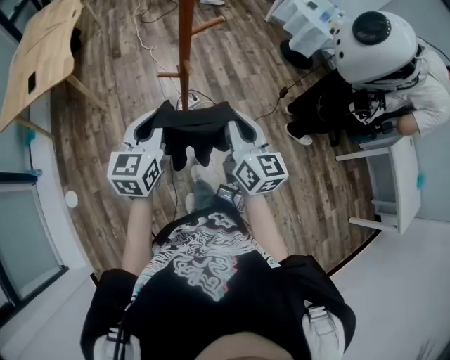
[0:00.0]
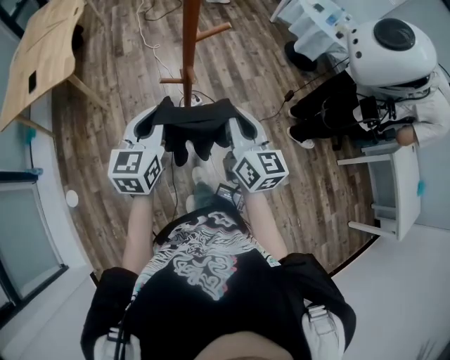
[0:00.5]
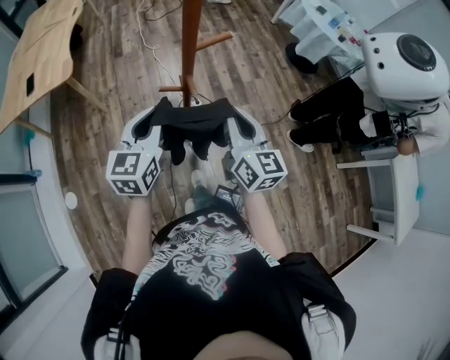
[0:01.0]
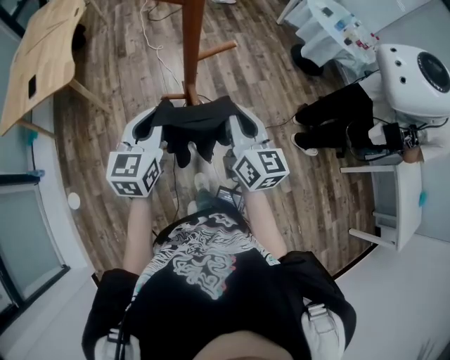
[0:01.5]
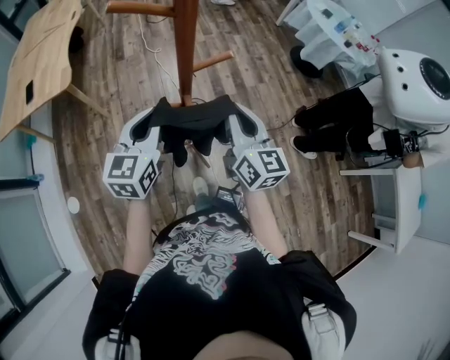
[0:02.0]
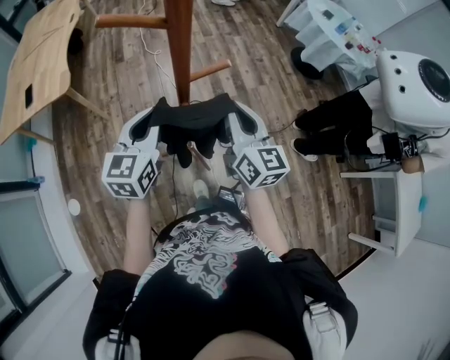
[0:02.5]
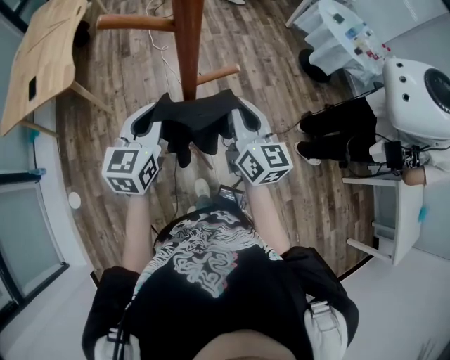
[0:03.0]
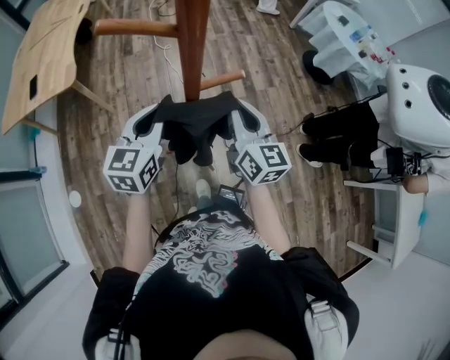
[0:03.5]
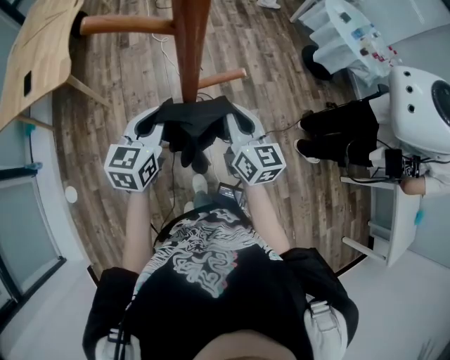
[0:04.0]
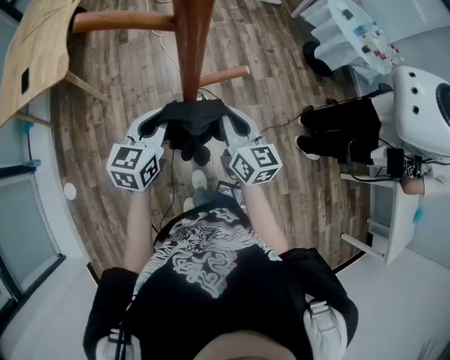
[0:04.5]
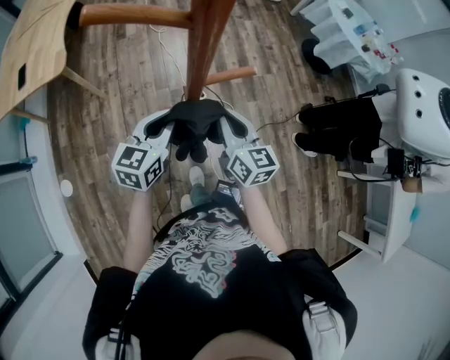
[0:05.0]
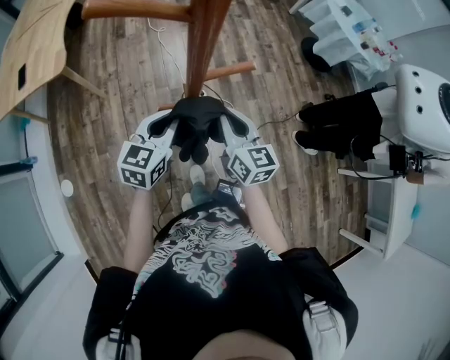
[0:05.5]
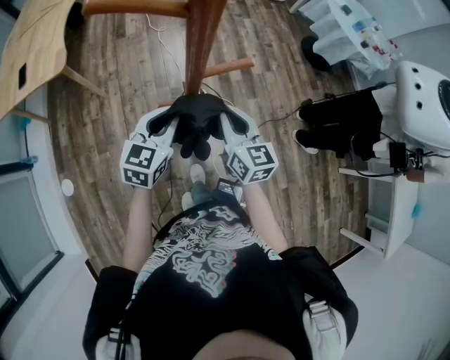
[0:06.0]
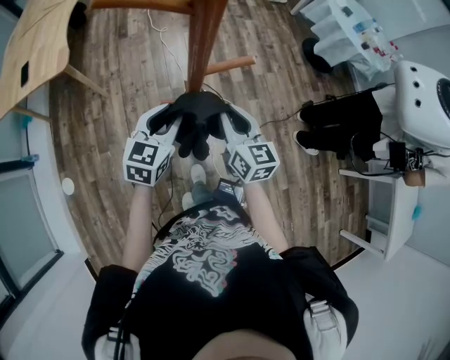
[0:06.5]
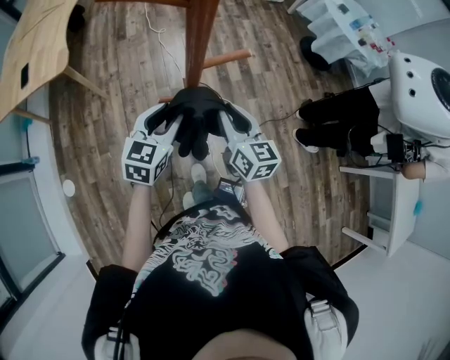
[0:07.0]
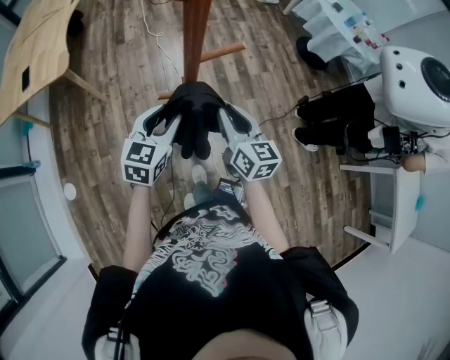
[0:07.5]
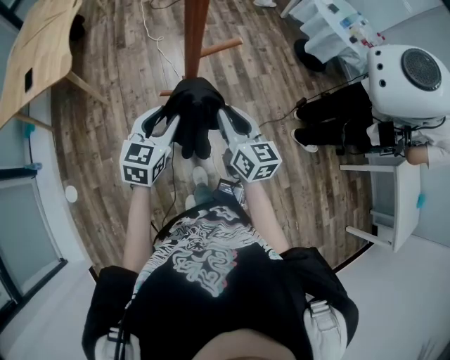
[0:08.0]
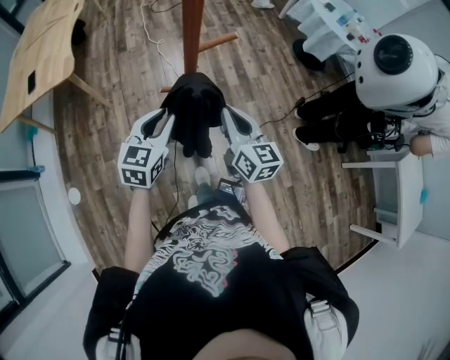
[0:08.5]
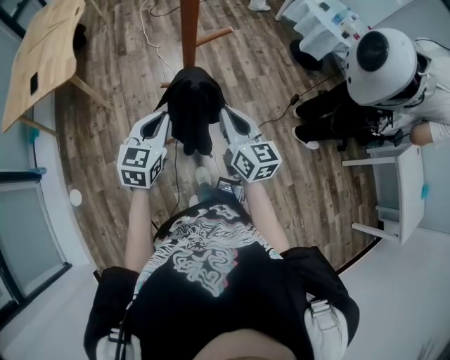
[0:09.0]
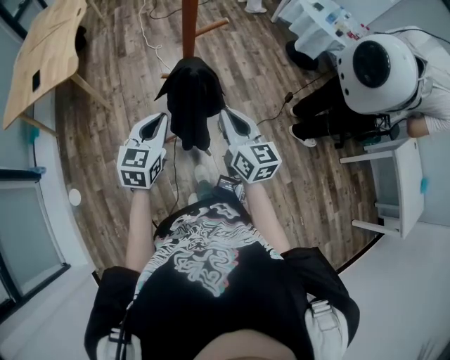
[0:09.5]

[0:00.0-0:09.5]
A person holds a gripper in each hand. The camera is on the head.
0:00.0 to 0:02.0: Both grippers travel together forward, some 15 cm.
0:02.0 to 0:04.0: Both grippers travel together forward and downward, about 10 cm.
0:04.0 to 0:05.5: The left gripper ends up some 5 cm from where it was, while the right gripper moves roughly 5 cm.
0:05.5 to 0:07.5: The left gripper opens.
0:07.5 to 0:09.5: Both grippers travel together backward, roughly 15 cm. The left gripper closes.

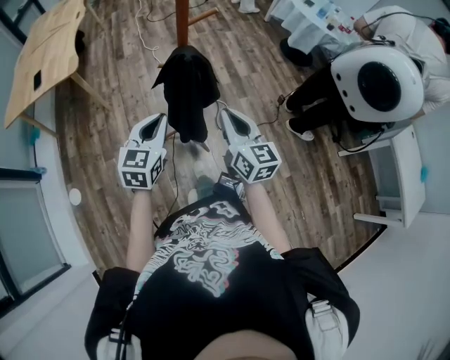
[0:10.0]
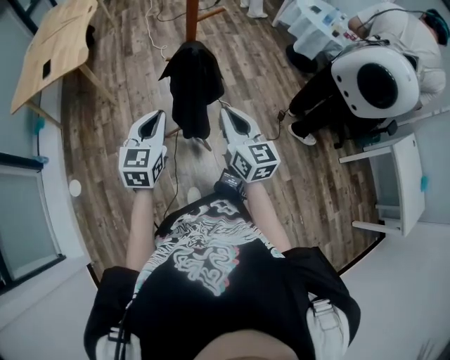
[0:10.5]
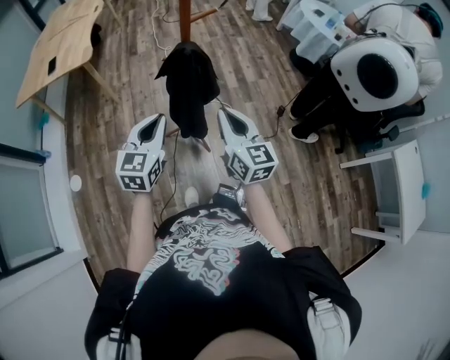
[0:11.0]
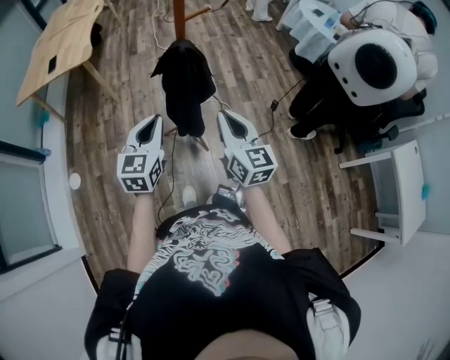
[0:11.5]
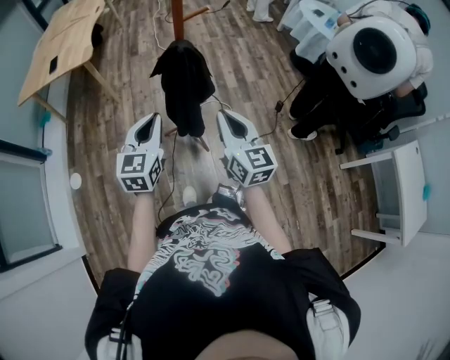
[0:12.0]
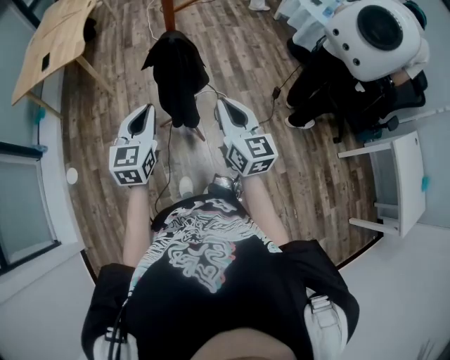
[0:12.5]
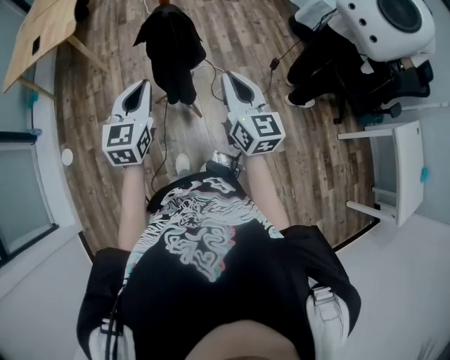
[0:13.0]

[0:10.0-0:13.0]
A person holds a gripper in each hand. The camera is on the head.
0:10.0 to 0:11.5: Both grippers travel together backward, about 5 cm.
0:11.5 to 0:13.0: The right gripper moves some 5 cm.

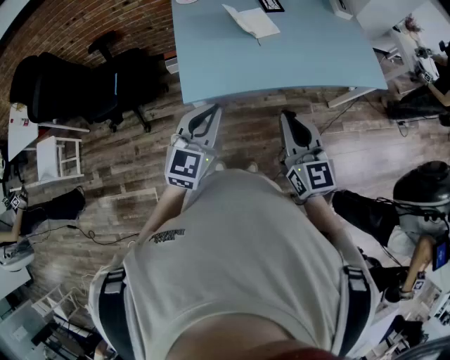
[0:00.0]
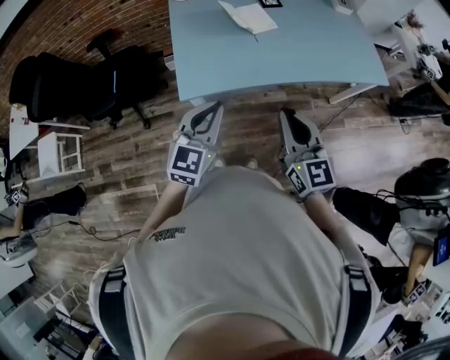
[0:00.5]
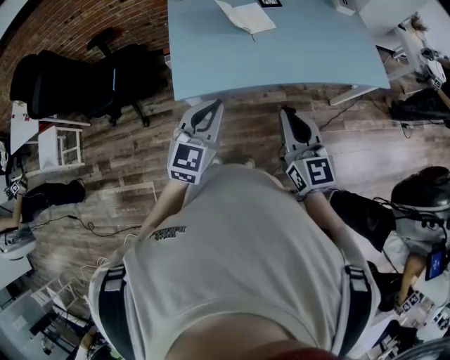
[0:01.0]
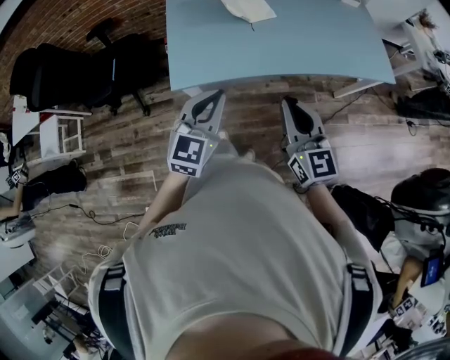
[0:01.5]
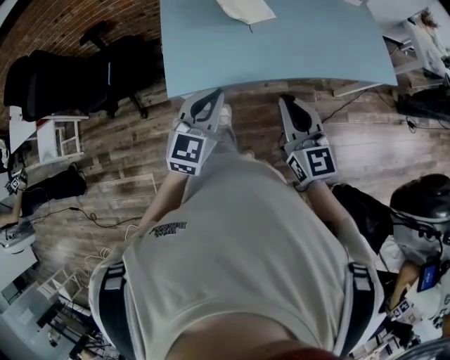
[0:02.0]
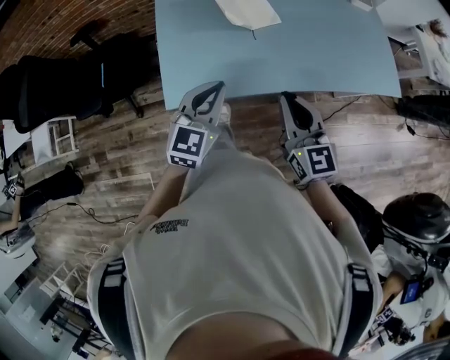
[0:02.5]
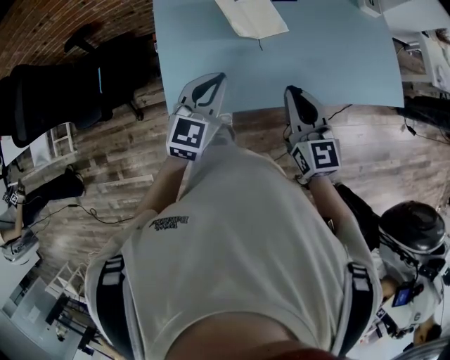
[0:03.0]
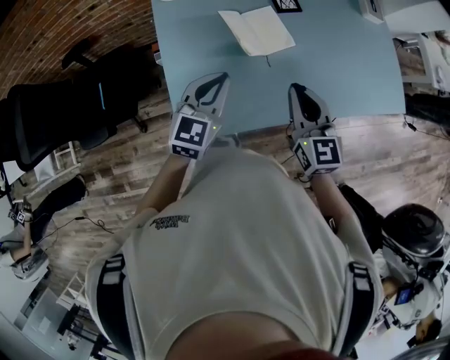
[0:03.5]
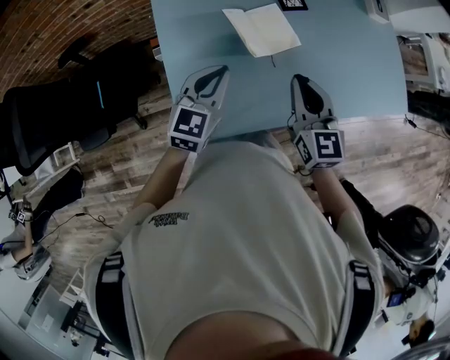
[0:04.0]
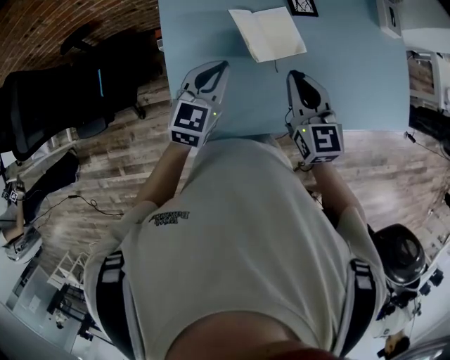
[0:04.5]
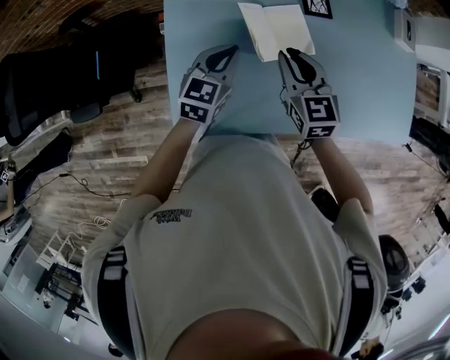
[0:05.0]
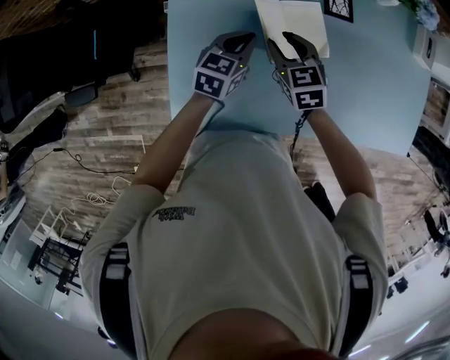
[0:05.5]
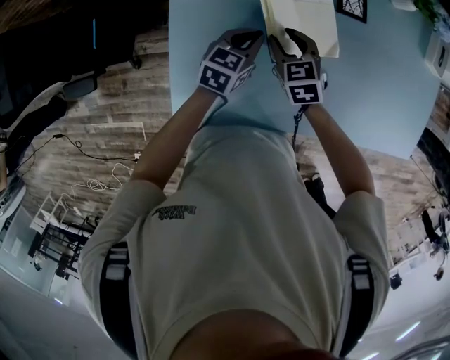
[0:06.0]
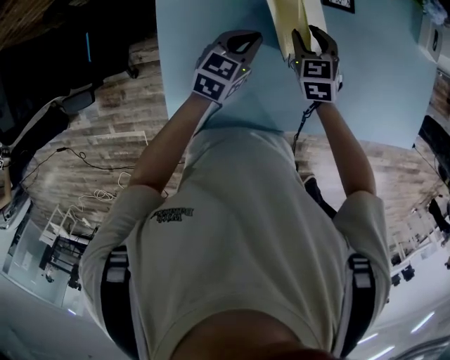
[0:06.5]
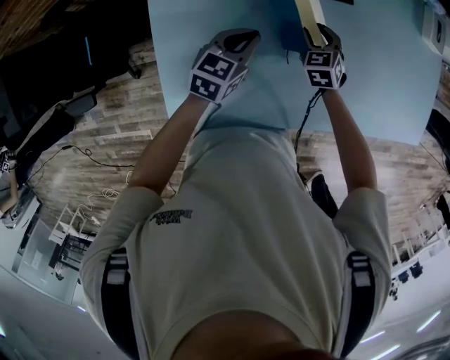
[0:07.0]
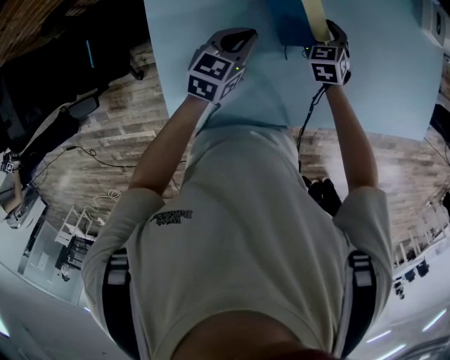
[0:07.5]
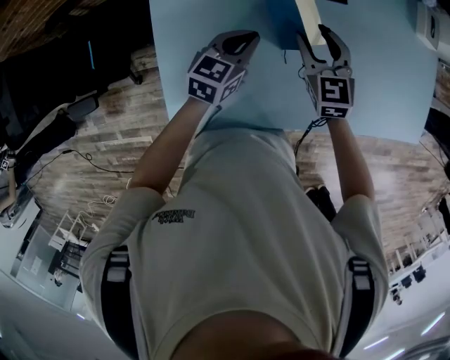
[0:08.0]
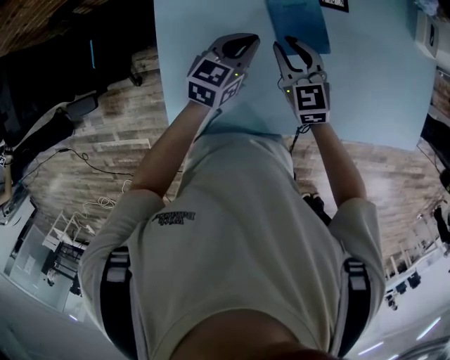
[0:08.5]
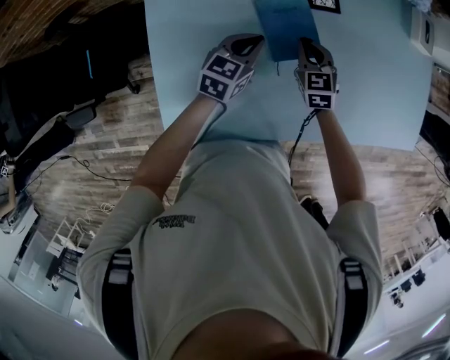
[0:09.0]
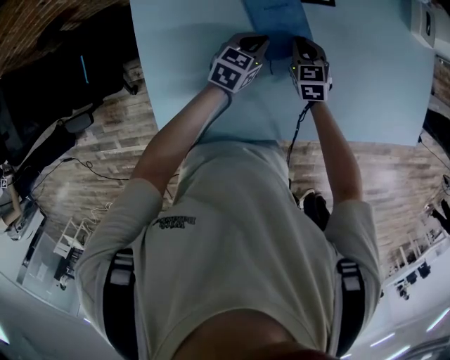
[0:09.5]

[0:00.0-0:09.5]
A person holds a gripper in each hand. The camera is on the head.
0:00.0 to 0:02.0: The left gripper travels to the right and forward by roughly 10 cm, while the right gripper goes roughly 10 cm forward and to the right.
0:02.0 to 0:04.0: Both grippers travel together forward, about 30 cm.
0:04.0 to 0:05.5: The right gripper is displaced downward, forward and to the left by roughly 25 cm, rotates approximately 30 degrees, and opens up; the left gripper heads downward and forward, covering about 20 cm, and changes its angle by about 20 degrees.
0:05.5 to 0:07.5: The right gripper goes approximately 20 cm to the right, downward and forward, turns by approximately 20 degrees, and opens its fingers.
0:07.5 to 0:09.5: The right gripper moves some 15 cm upward and comes back, and closes up. The left gripper moves downward and to the right, some 10 cm.

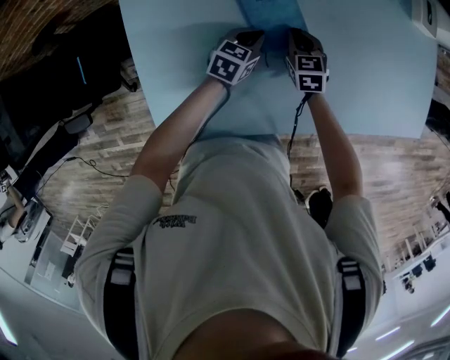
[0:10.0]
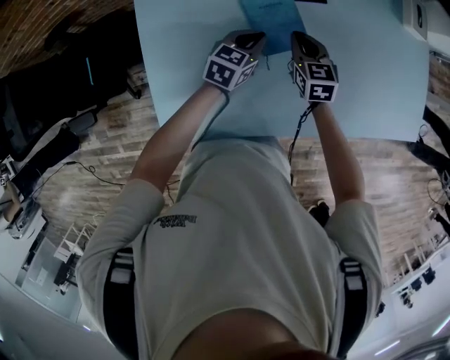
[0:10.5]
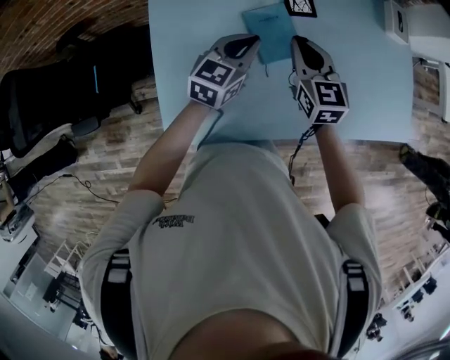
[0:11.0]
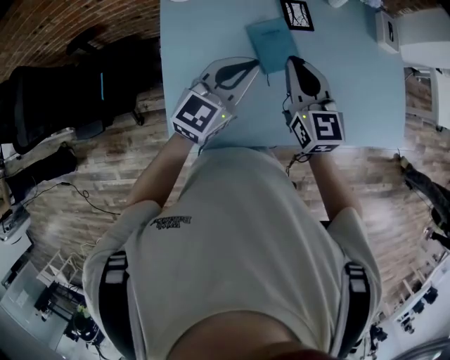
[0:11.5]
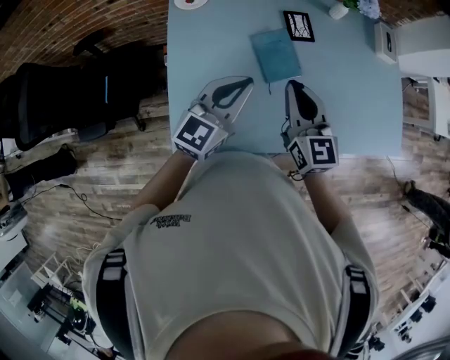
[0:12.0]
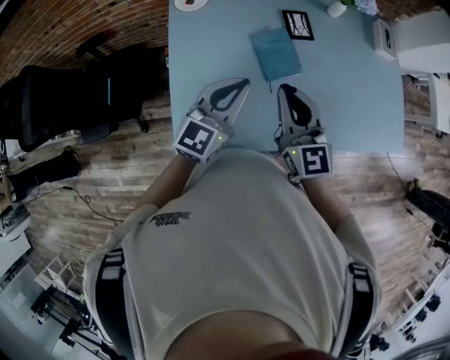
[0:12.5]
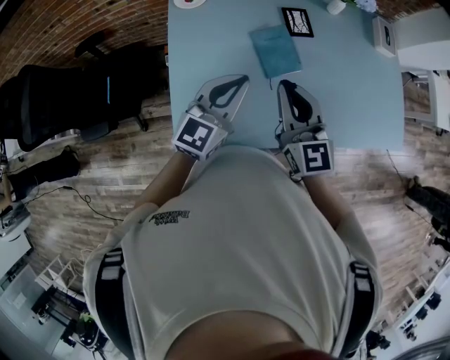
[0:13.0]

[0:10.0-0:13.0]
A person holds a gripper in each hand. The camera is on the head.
0:10.0 to 0:11.5: The two grippers go about 30 cm upward. The right gripper tips its fingers upward by some 30 degrees; the left gripper angles its fingers upward, by some 30 degrees.
0:11.5 to 0:13.0: The right gripper is displaced backward by roughly 5 cm.

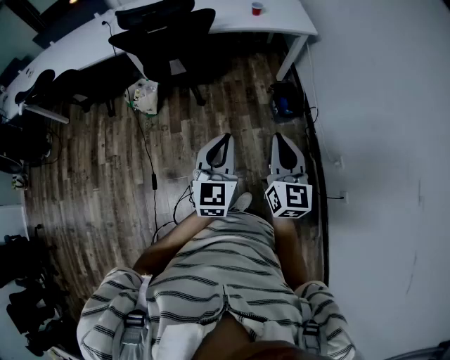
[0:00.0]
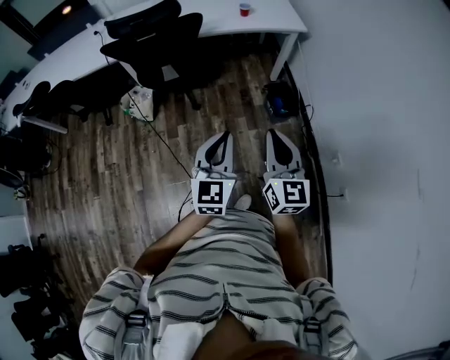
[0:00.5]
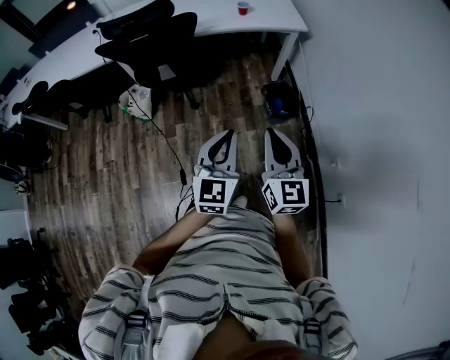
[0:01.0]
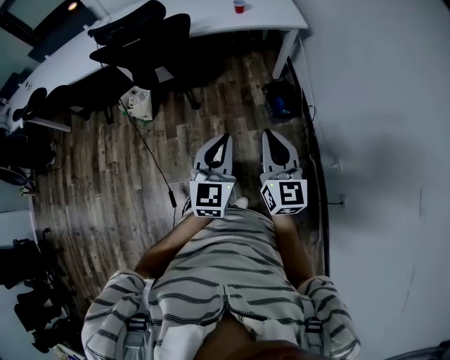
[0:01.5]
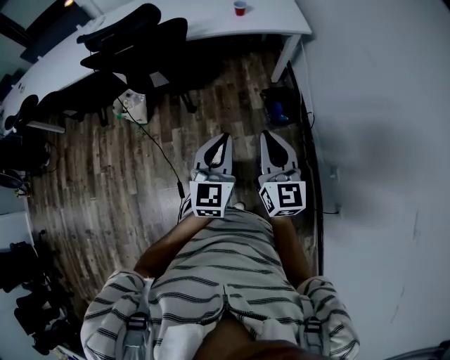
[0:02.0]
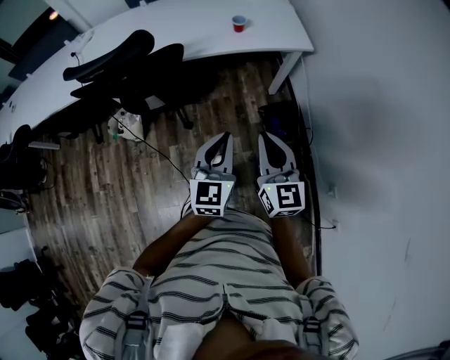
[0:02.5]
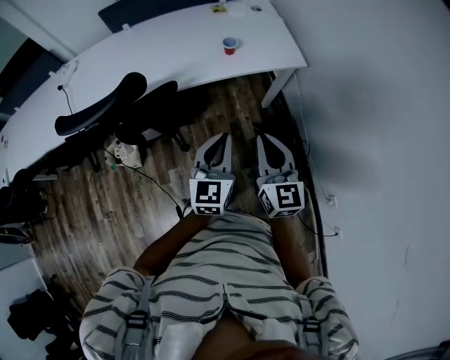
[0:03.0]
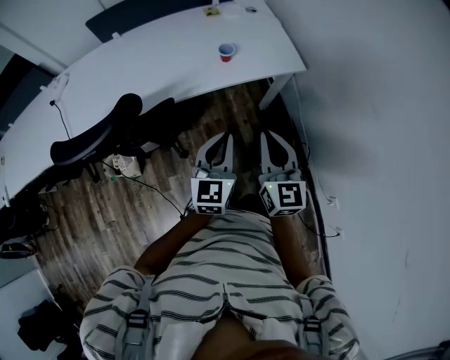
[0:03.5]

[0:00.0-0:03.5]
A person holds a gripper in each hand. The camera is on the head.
0:00.0 to 0:02.0: Both grippers travel together forward and to the right, roughly 15 cm.
0:02.0 to 0:03.5: Both grippers move forward, roughly 35 cm.
